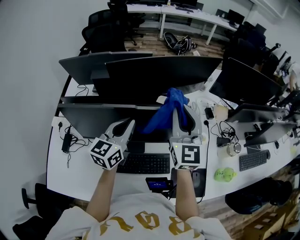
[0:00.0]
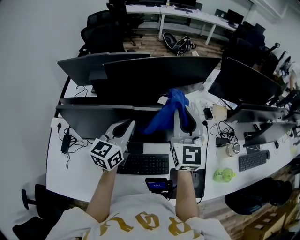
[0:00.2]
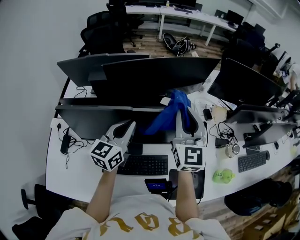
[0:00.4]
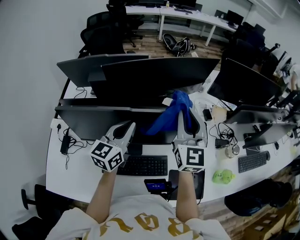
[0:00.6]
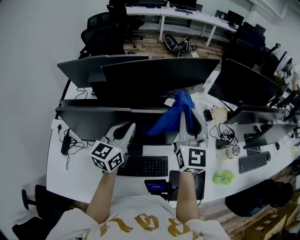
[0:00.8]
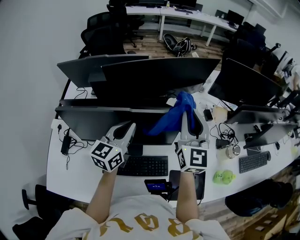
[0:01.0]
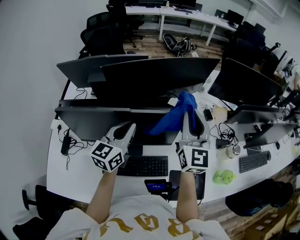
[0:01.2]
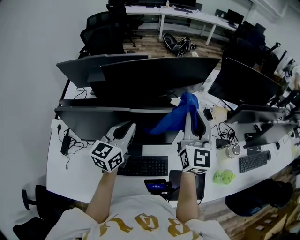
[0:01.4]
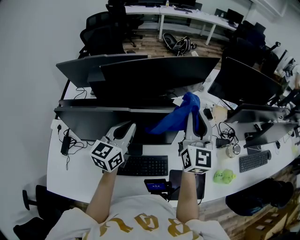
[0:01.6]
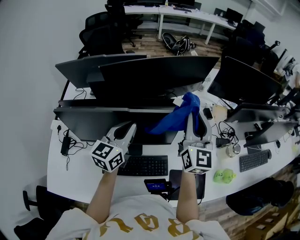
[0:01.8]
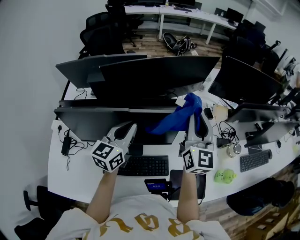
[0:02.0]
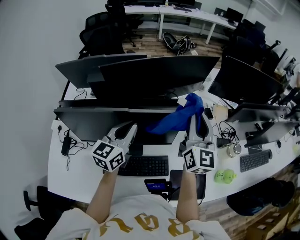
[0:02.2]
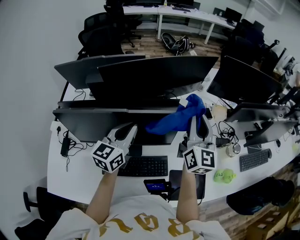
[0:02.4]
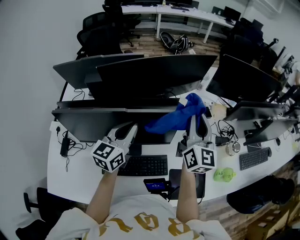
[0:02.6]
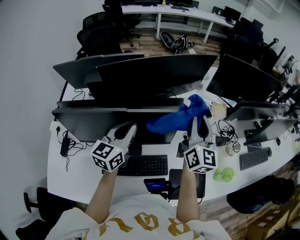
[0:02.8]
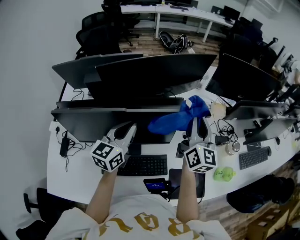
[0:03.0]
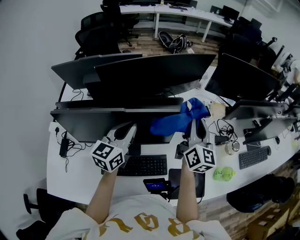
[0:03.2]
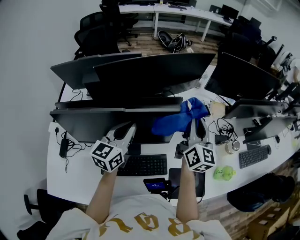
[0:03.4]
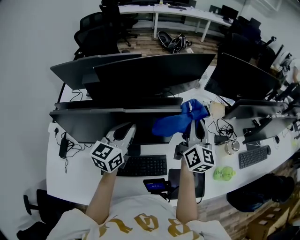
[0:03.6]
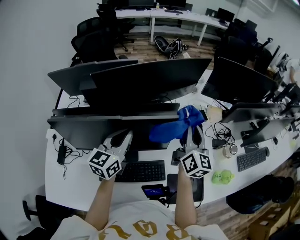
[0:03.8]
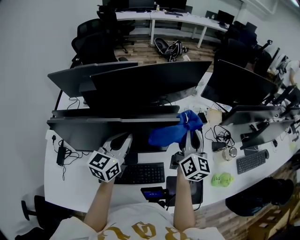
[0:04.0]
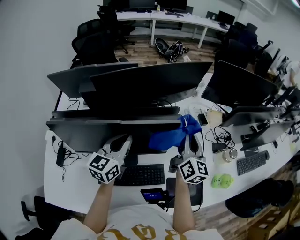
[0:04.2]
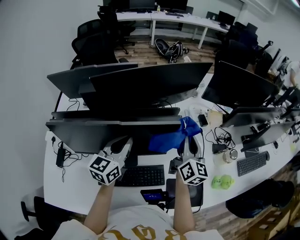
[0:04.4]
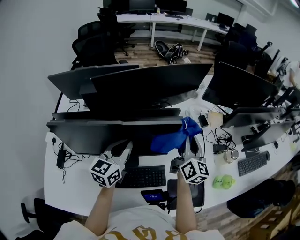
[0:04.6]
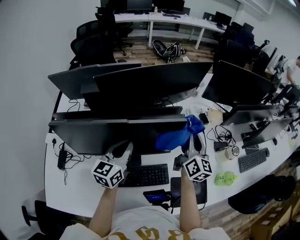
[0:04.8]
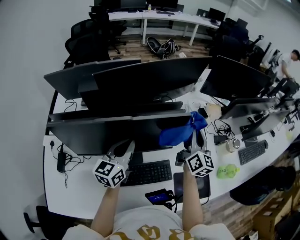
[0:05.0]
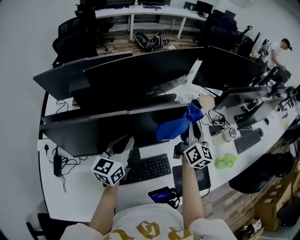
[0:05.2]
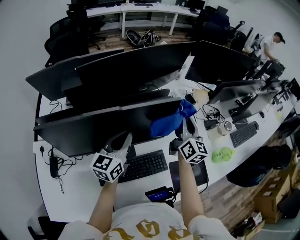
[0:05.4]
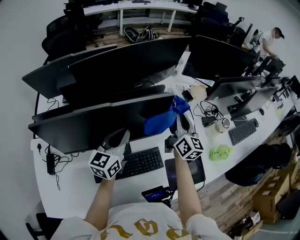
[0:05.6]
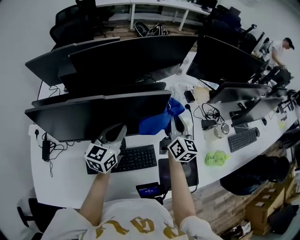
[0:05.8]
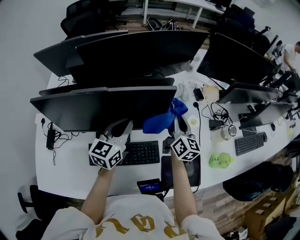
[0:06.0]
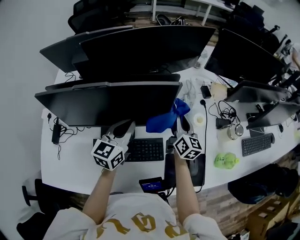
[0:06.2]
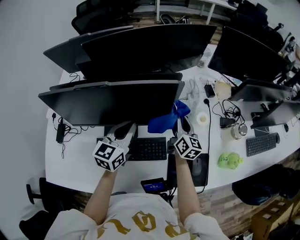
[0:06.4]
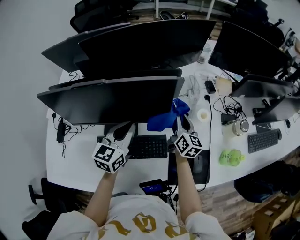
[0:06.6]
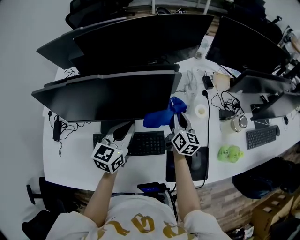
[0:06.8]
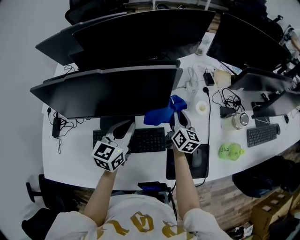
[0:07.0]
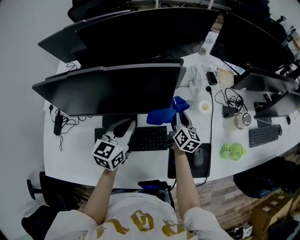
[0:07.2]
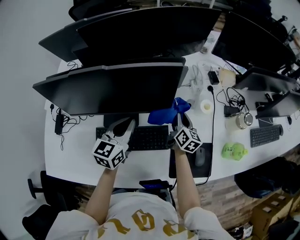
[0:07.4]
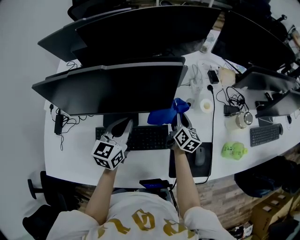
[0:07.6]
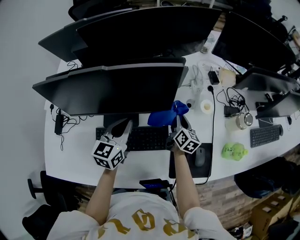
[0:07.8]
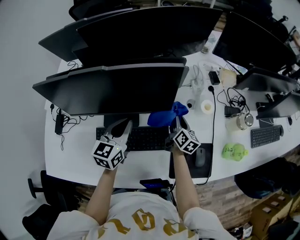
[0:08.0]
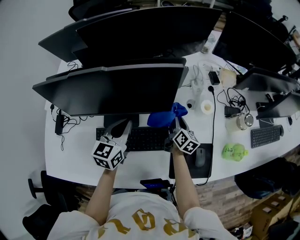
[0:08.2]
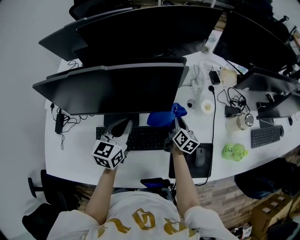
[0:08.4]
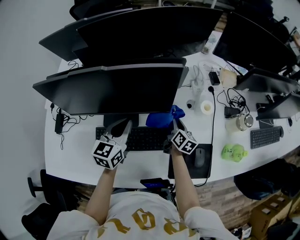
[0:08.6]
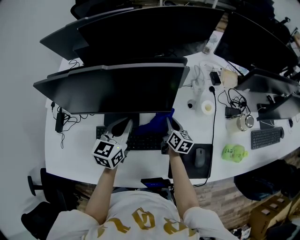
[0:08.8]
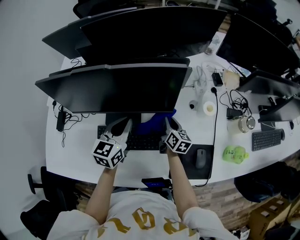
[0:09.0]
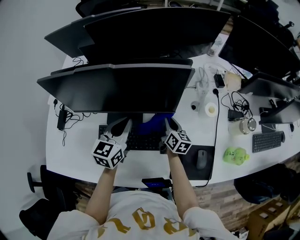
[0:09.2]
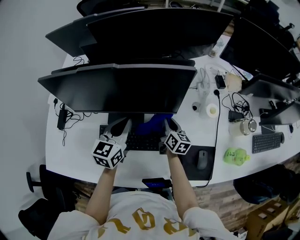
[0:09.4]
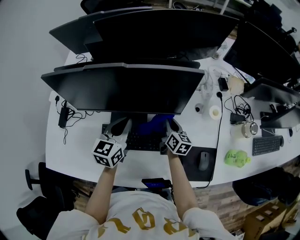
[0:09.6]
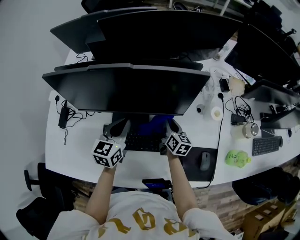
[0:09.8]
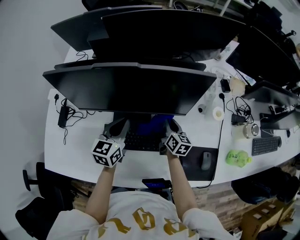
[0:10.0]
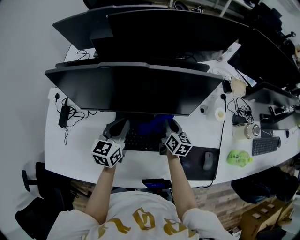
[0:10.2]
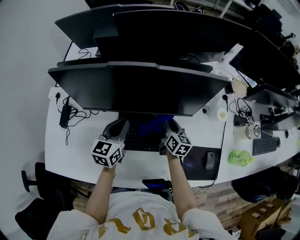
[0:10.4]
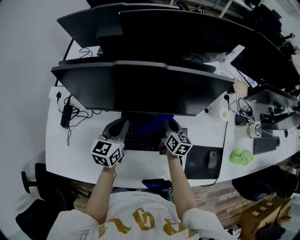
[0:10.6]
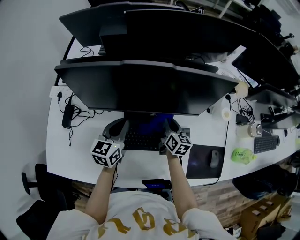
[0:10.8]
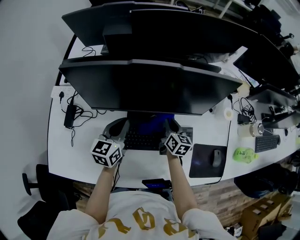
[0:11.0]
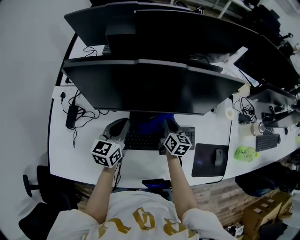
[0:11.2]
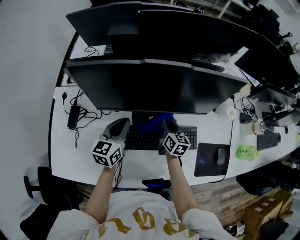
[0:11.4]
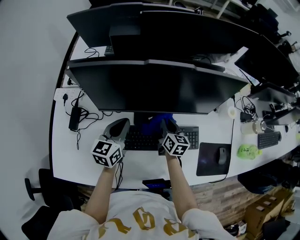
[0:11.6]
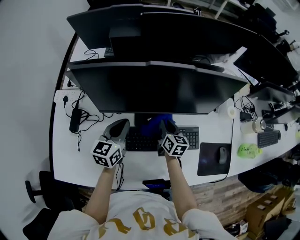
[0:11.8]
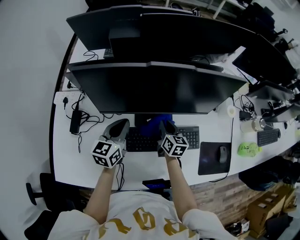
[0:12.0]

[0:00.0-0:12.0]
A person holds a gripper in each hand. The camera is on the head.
0:00.0 to 0:01.6: The right gripper is displaced to the right by some 10 cm.
0:01.6 to 0:03.0: The grippers stay close to where they were, moving slightly.
0:03.0 to 0:04.4: The right gripper travels downward by roughly 5 cm.
0:04.4 to 0:06.0: The left gripper goes some 5 cm downward. Meanwhile the right gripper heads downward, covering some 10 cm.
0:06.0 to 0:07.6: The right gripper goes roughly 15 cm downward; the left gripper shifts about 10 cm downward and backward.
0:07.6 to 0:09.0: The right gripper heads to the left, covering roughly 5 cm.
0:09.0 to 0:10.4: The grippers both shift to the left by some 10 cm.
0:10.4 to 0:12.0: The grippers both shift to the left by about 10 cm.

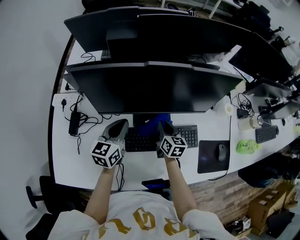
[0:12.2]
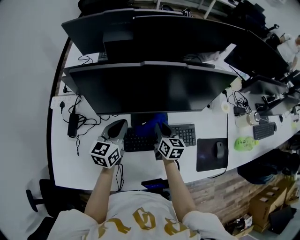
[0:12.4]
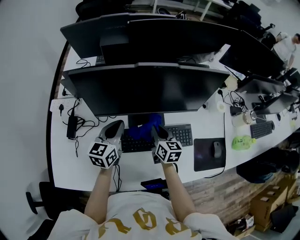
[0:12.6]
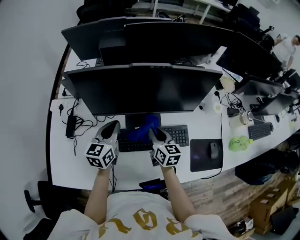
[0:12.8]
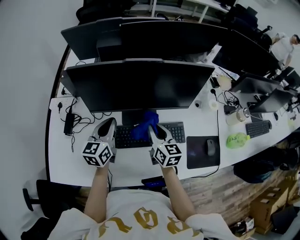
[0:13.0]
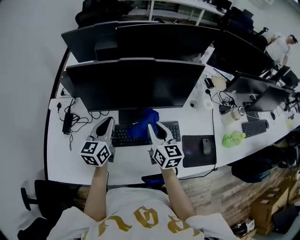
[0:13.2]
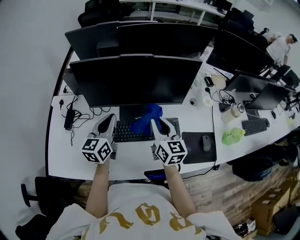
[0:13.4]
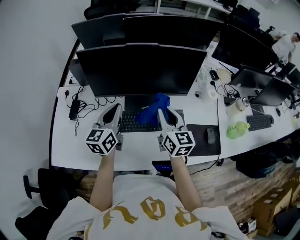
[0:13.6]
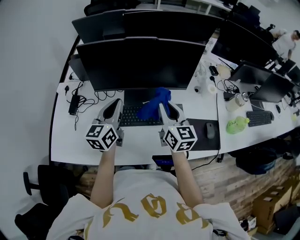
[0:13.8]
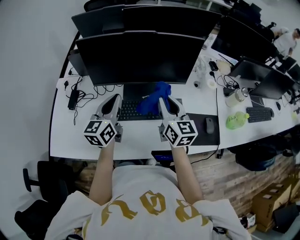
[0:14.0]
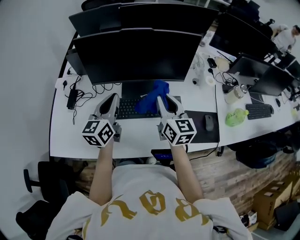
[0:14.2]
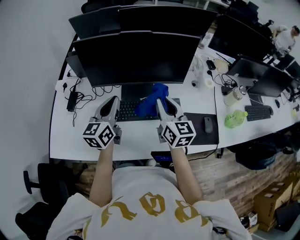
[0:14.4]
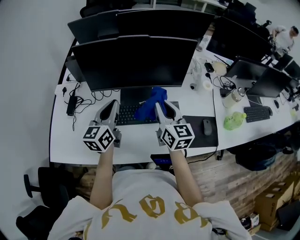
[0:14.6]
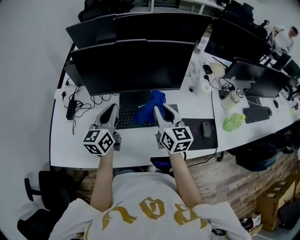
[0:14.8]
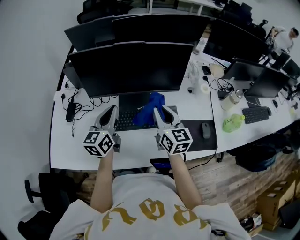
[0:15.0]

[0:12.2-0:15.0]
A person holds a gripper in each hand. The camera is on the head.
0:12.2 to 0:13.6: The left gripper travels upward and backward by approximately 10 cm. The right gripper shifts approximately 20 cm upward and backward, and swivels about 20 degrees.
0:13.6 to 0:15.0: The grippers make only small movements.

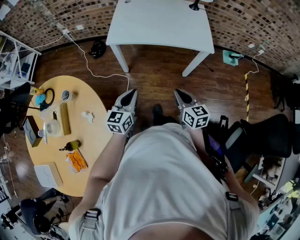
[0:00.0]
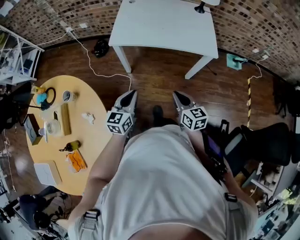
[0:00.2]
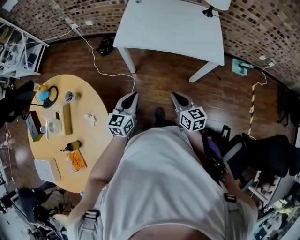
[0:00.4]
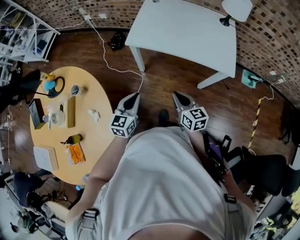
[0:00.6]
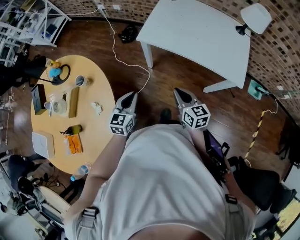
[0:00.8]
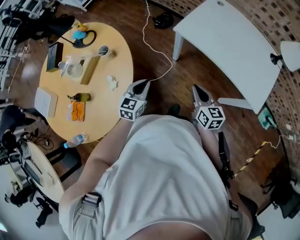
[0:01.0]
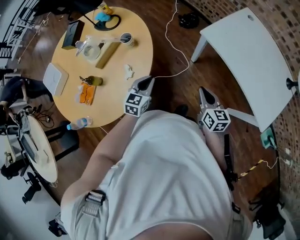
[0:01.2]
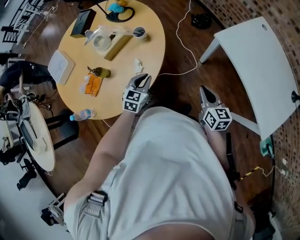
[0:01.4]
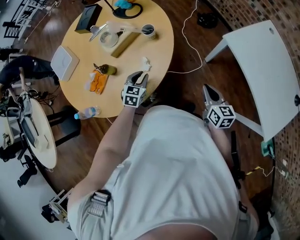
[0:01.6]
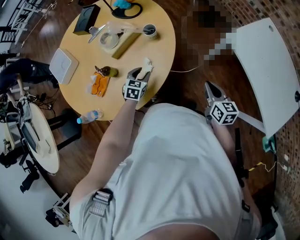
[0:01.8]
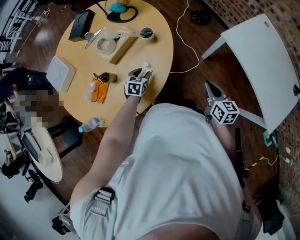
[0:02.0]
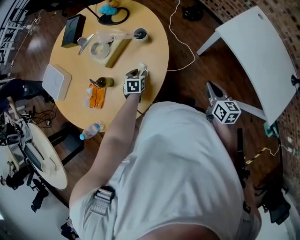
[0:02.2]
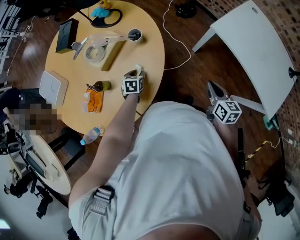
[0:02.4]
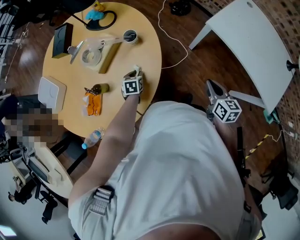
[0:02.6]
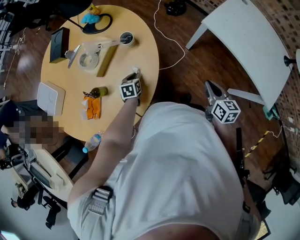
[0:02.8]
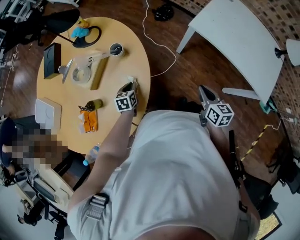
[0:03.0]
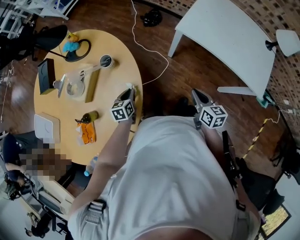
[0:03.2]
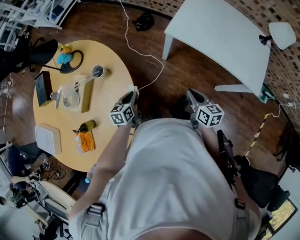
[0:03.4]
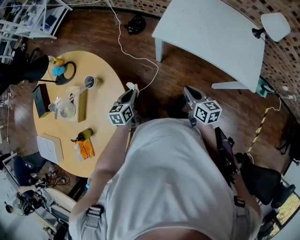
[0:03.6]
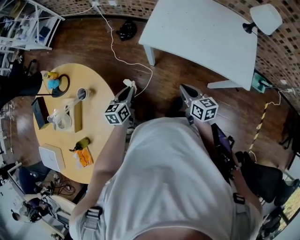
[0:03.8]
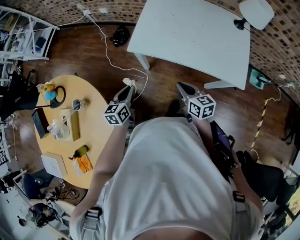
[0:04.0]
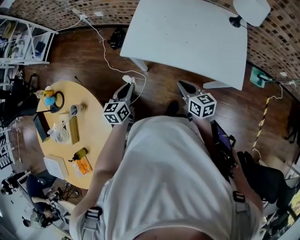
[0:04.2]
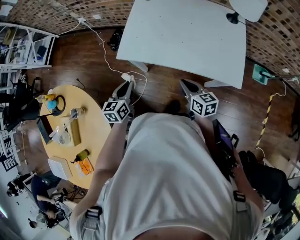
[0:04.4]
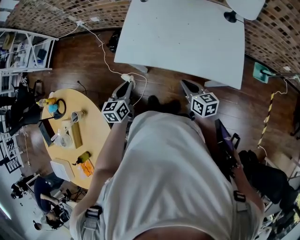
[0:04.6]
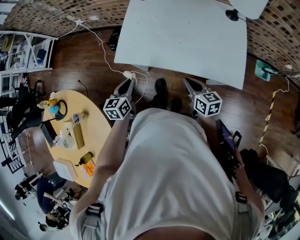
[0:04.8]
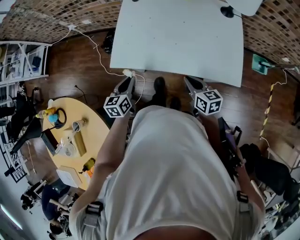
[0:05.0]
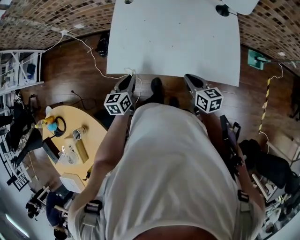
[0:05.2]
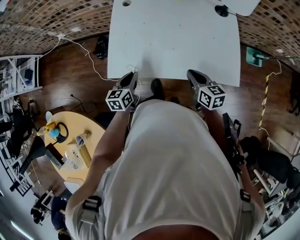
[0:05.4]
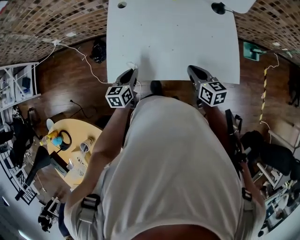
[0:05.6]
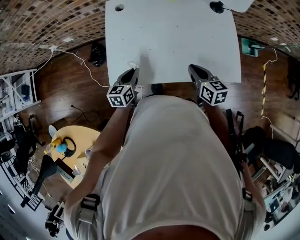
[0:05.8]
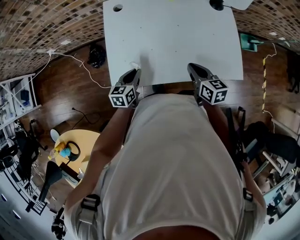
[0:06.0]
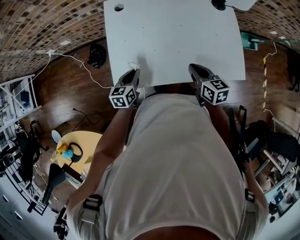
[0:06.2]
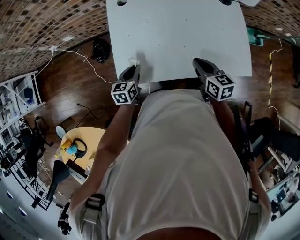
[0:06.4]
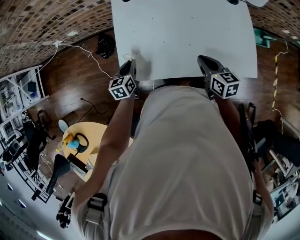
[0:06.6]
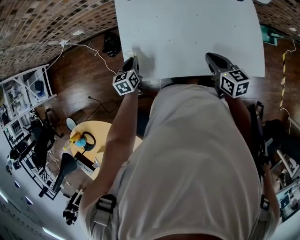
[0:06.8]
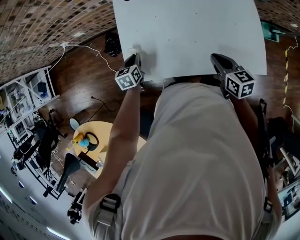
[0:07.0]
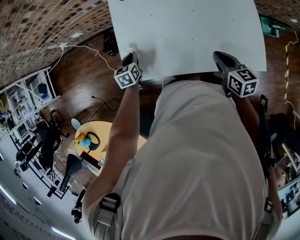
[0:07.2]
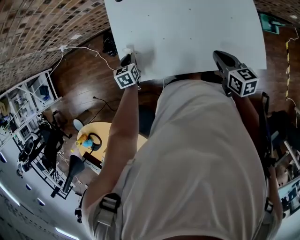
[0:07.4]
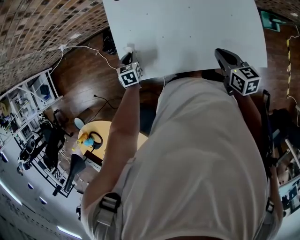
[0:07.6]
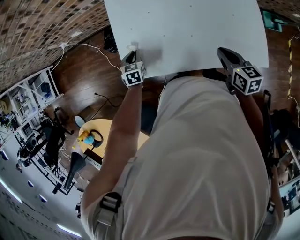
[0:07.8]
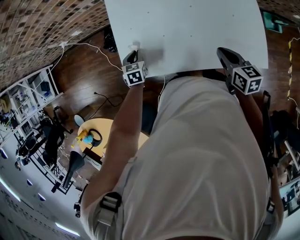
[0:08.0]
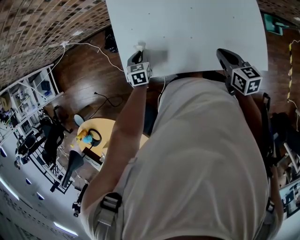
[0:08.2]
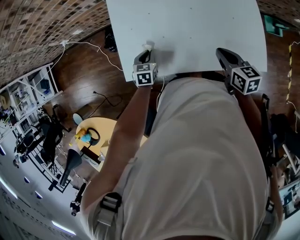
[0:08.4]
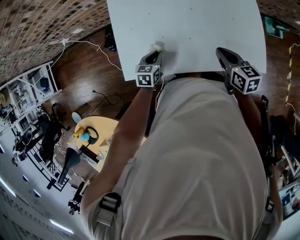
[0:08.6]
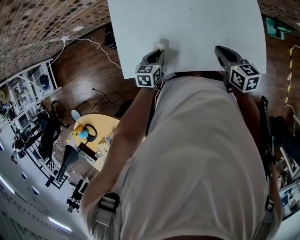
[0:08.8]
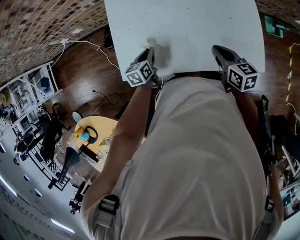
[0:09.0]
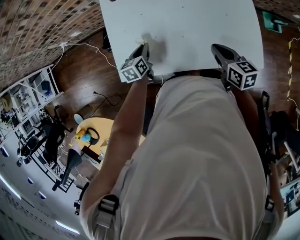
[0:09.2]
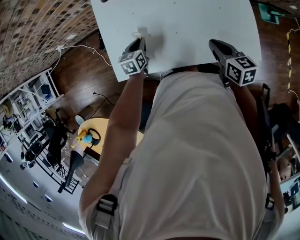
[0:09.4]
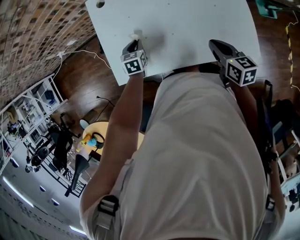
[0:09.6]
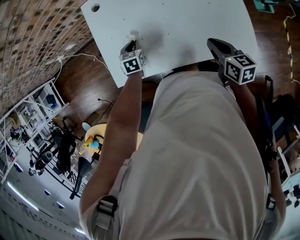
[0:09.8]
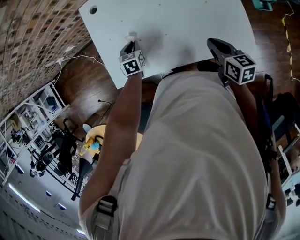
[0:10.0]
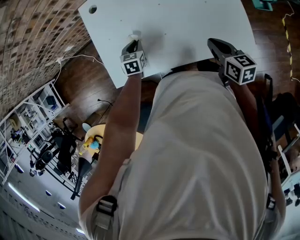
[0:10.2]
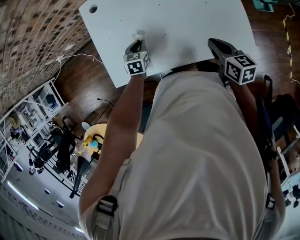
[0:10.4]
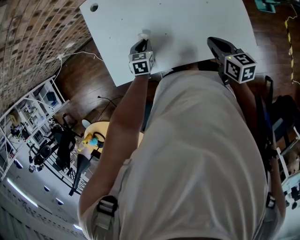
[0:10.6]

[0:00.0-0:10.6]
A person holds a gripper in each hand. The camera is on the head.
0:00.0 to 0:01.6: The right gripper moves roughly 25 cm, and turns by about 50 degrees; the left gripper ends up approximately 30 cm from where it was, rotates approximately 60 degrees, and opens up.
0:01.6 to 0:03.0: The left gripper travels downward and forward by roughly 10 cm, swivels about 20 degrees, and opens and closes again, while the right gripper changes its angle by about 20 degrees.
0:03.0 to 0:04.6: The right gripper goes roughly 30 cm to the right and forward; the left gripper moves to the right, forward and upward, roughly 50 cm, and turns by about 30 degrees.
0:04.6 to 0:06.0: The two grippers go some 20 cm forward. The left gripper rotates about 20 degrees.
0:06.0 to 0:07.6: The left gripper is displaced forward, to the left and downward by approximately 15 cm, and swivels approximately 30 degrees; the right gripper heads to the right, covering some 5 cm.
0:07.6 to 0:09.0: The left gripper goes roughly 10 cm to the right, and swivels approximately 30 degrees.
0:09.0 to 0:10.6: The two grippers go roughly 10 cm to the right. The left gripper swivels about 30 degrees.
